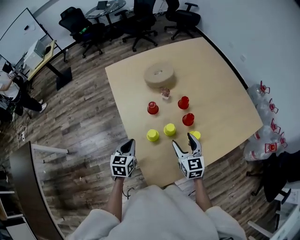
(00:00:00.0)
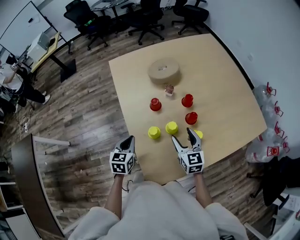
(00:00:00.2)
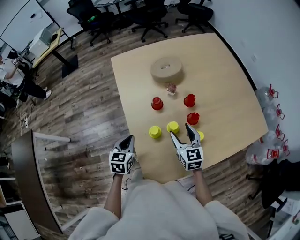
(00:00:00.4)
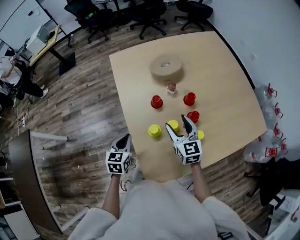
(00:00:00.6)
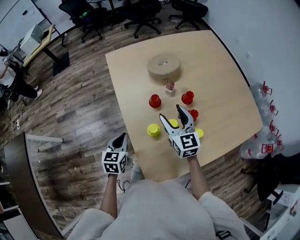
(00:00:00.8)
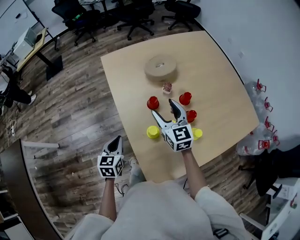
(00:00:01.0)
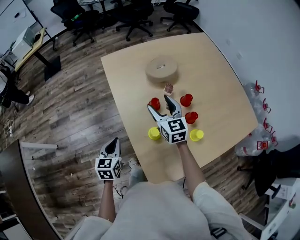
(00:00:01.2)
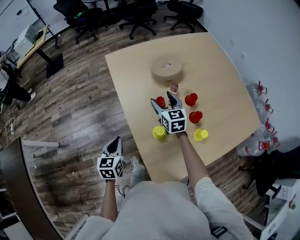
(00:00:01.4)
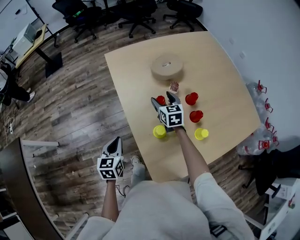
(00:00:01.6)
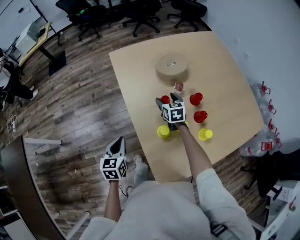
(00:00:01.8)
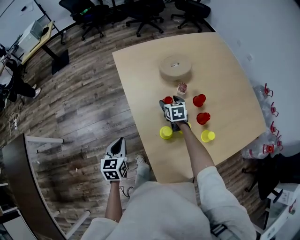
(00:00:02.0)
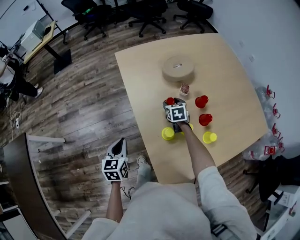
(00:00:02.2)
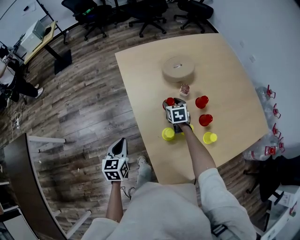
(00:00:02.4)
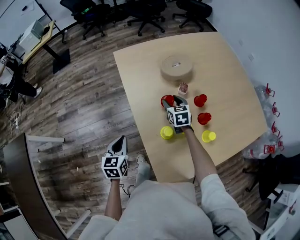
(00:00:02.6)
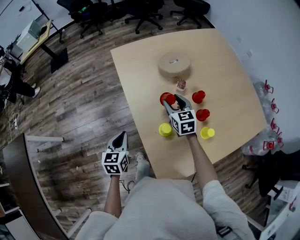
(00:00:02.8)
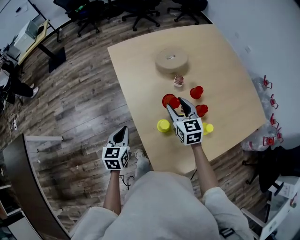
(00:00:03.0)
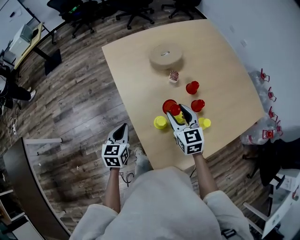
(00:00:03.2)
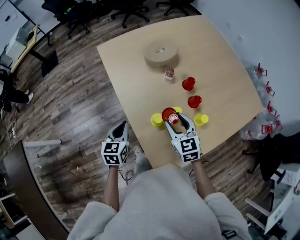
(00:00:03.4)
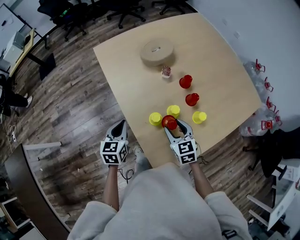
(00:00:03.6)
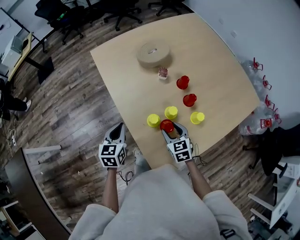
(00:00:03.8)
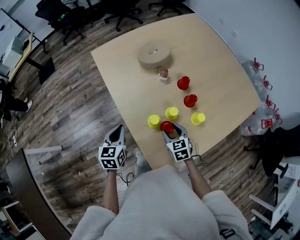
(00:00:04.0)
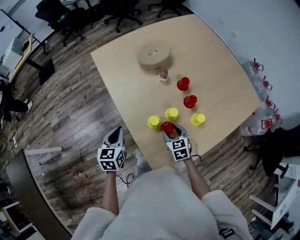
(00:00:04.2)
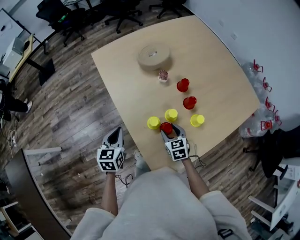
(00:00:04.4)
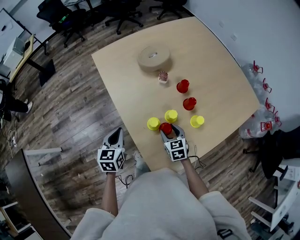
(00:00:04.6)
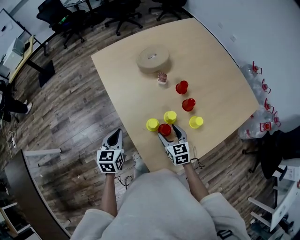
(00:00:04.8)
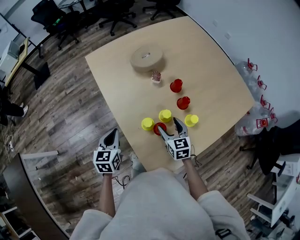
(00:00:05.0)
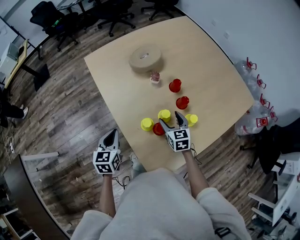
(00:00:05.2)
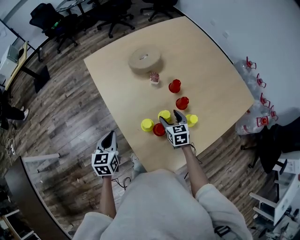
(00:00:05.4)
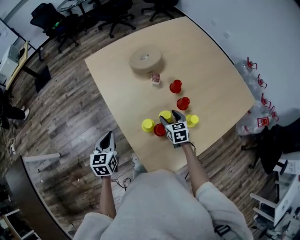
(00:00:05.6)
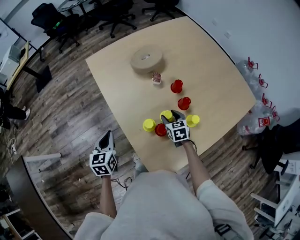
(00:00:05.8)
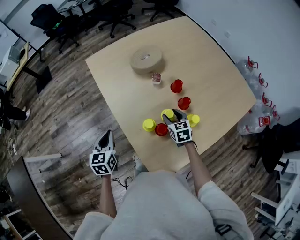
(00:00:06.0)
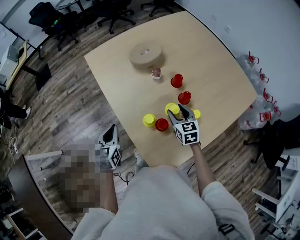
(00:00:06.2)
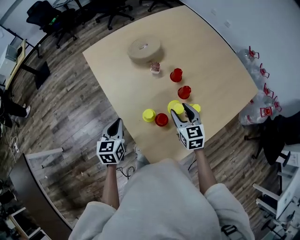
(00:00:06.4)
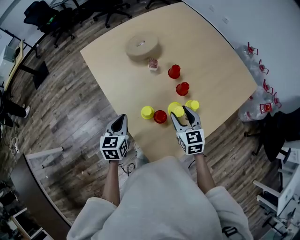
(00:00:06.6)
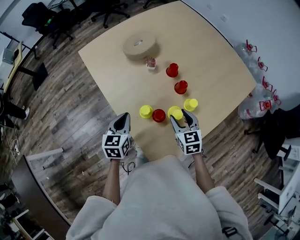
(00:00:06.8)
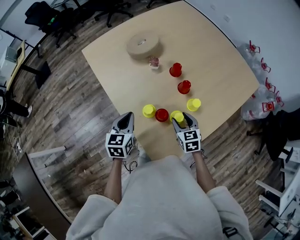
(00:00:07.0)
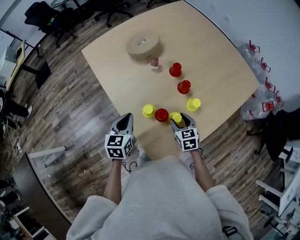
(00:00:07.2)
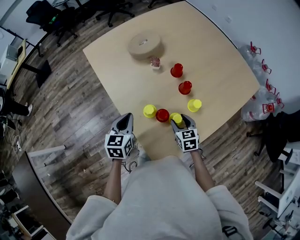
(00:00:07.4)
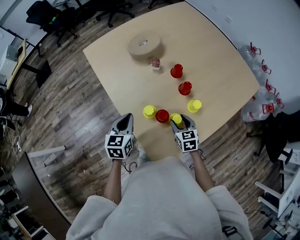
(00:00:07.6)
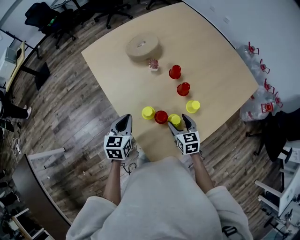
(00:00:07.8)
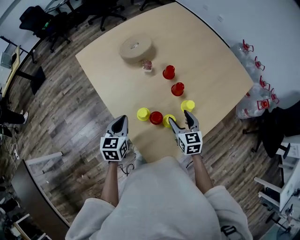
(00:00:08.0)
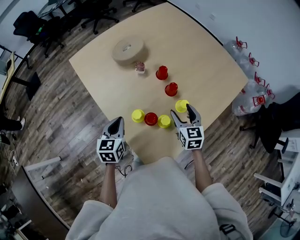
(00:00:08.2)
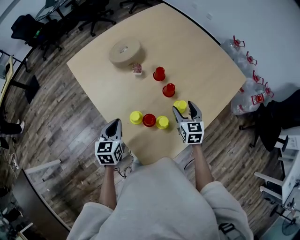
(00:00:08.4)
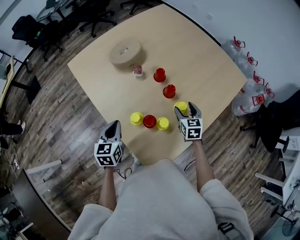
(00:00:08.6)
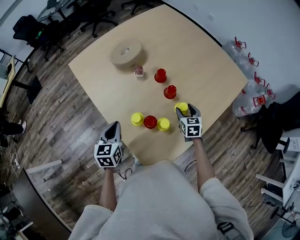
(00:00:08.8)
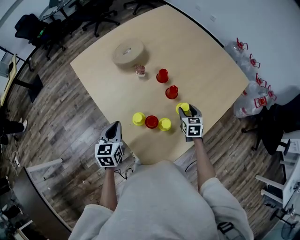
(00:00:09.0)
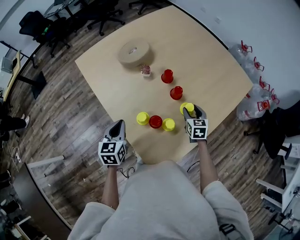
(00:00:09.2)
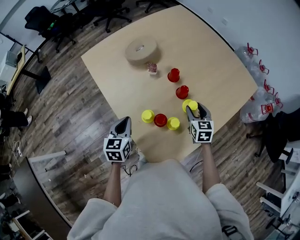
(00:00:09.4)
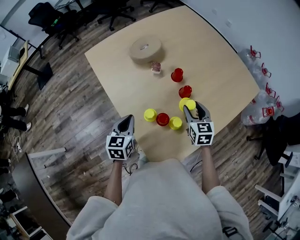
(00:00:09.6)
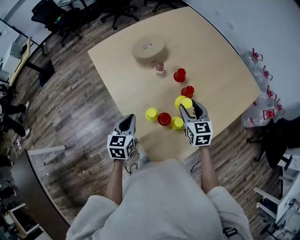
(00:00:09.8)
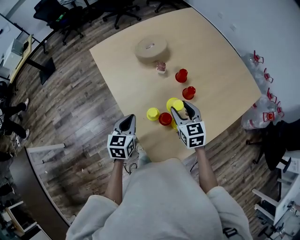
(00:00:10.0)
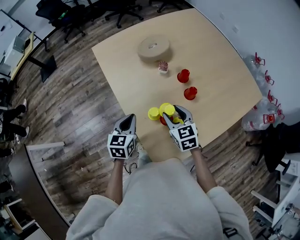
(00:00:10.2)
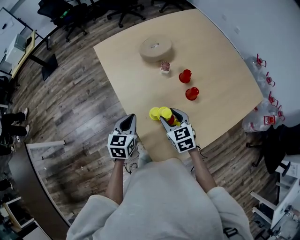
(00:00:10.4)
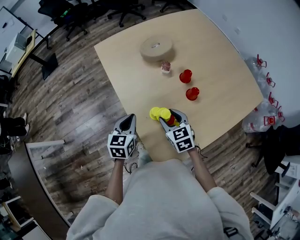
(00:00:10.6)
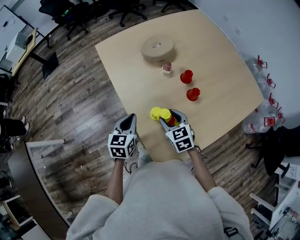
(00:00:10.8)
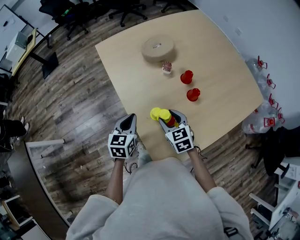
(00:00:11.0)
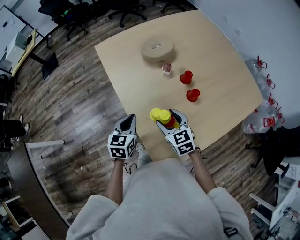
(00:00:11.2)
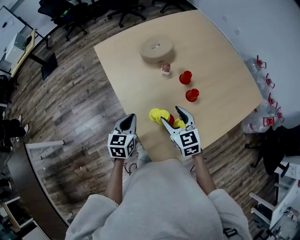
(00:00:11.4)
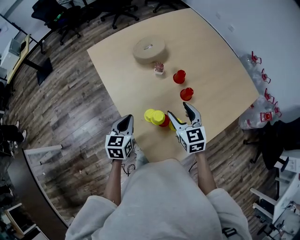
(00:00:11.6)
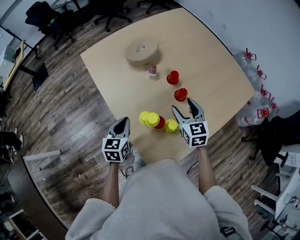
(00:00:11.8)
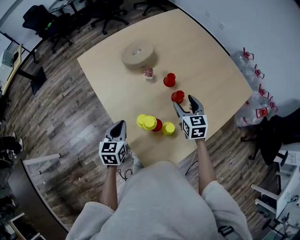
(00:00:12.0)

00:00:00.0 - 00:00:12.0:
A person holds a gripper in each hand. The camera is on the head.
00:00:00.0 - 00:00:01.6: The left gripper moves to the left, some 10 cm. The right gripper is displaced forward and to the left by some 25 cm.
00:00:01.6 - 00:00:03.0: The right gripper shifts some 10 cm backward and upward.
00:00:03.0 - 00:00:04.4: The right gripper goes some 20 cm downward and backward.
00:00:04.4 - 00:00:06.0: The right gripper travels forward by some 10 cm.
00:00:06.0 - 00:00:07.6: The right gripper heads backward, covering roughly 10 cm, and goes upward and returns, about 10 cm each way. Meanwhile the left gripper is displaced to the right by some 10 cm.
00:00:07.6 - 00:00:09.0: The right gripper is displaced to the right and forward by approximately 15 cm.
00:00:09.0 - 00:00:10.4: The right gripper goes roughly 25 cm to the left and upward, and changes its angle by about 30 degrees.
00:00:10.4 - 00:00:12.0: The right gripper is displaced to the right and forward by approximately 15 cm, and changes its angle by approximately 20 degrees.

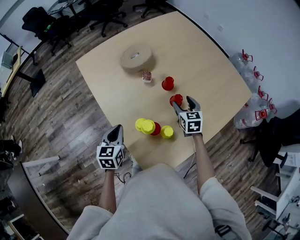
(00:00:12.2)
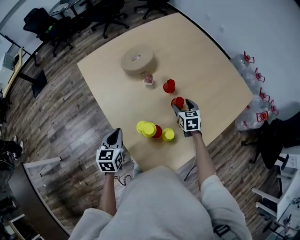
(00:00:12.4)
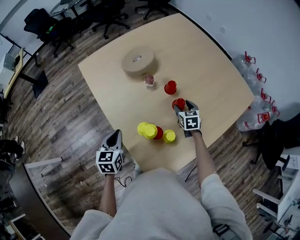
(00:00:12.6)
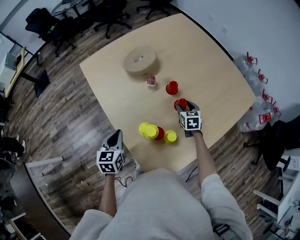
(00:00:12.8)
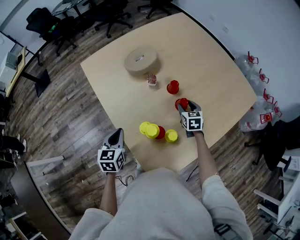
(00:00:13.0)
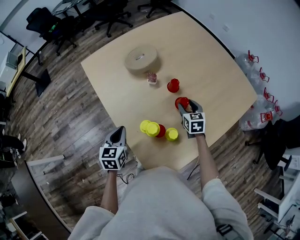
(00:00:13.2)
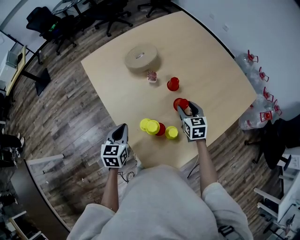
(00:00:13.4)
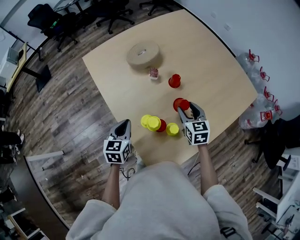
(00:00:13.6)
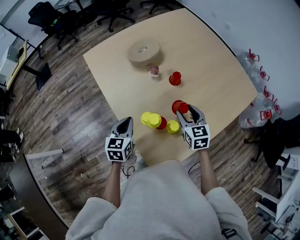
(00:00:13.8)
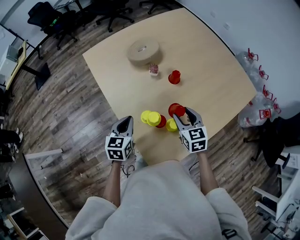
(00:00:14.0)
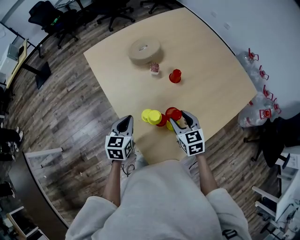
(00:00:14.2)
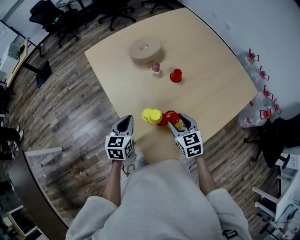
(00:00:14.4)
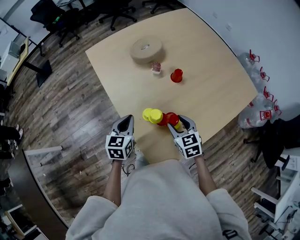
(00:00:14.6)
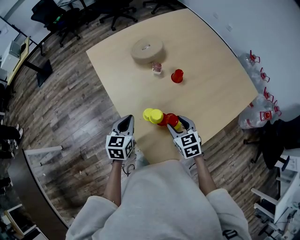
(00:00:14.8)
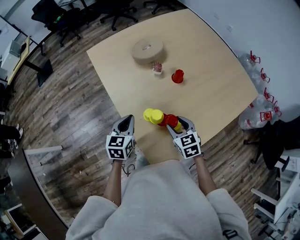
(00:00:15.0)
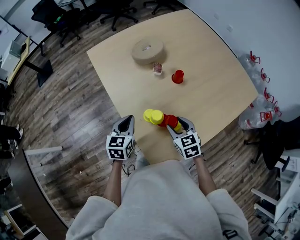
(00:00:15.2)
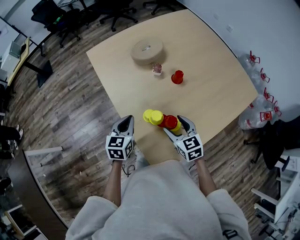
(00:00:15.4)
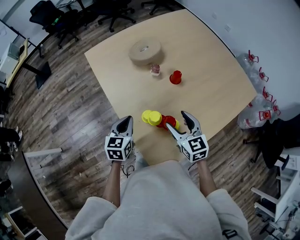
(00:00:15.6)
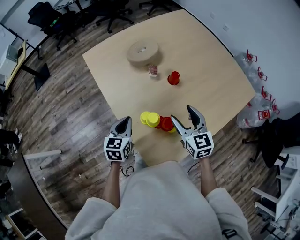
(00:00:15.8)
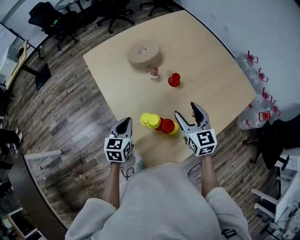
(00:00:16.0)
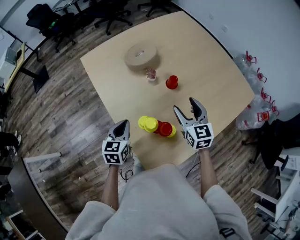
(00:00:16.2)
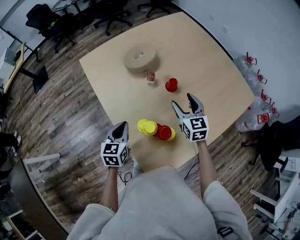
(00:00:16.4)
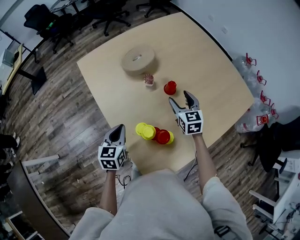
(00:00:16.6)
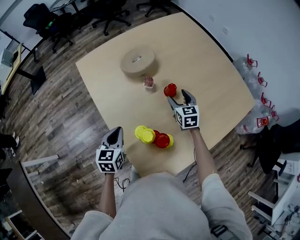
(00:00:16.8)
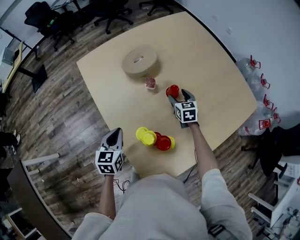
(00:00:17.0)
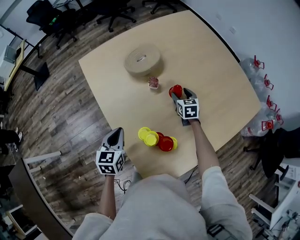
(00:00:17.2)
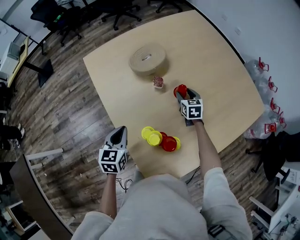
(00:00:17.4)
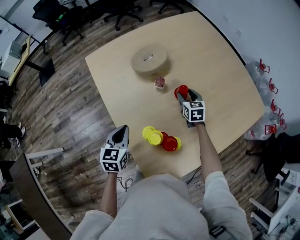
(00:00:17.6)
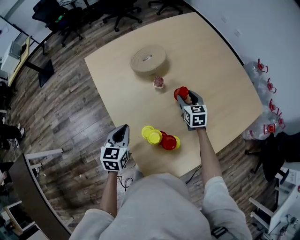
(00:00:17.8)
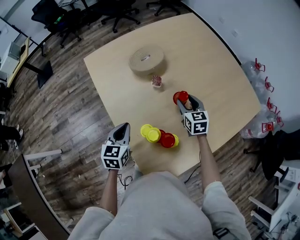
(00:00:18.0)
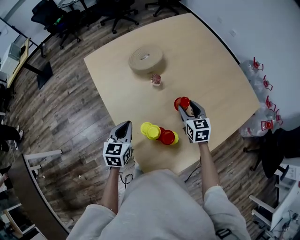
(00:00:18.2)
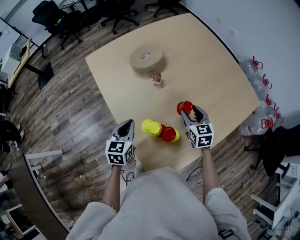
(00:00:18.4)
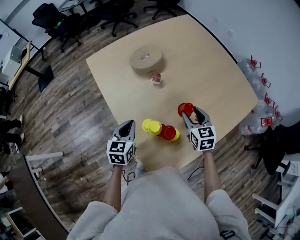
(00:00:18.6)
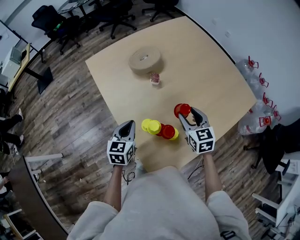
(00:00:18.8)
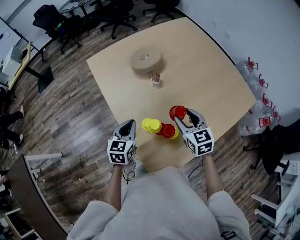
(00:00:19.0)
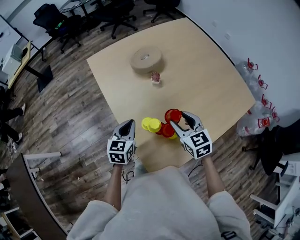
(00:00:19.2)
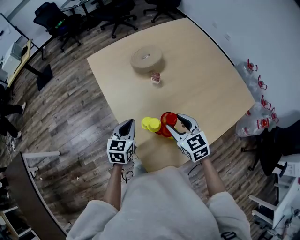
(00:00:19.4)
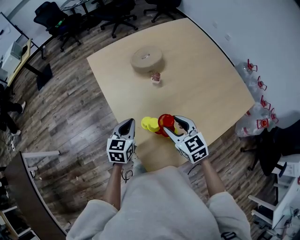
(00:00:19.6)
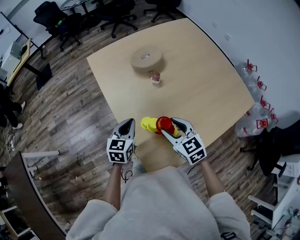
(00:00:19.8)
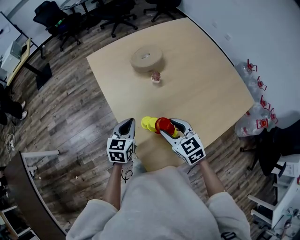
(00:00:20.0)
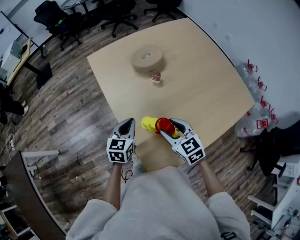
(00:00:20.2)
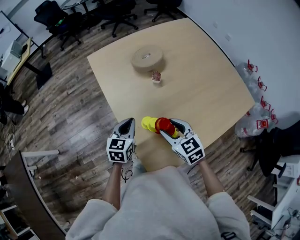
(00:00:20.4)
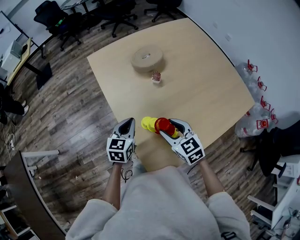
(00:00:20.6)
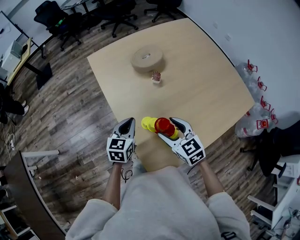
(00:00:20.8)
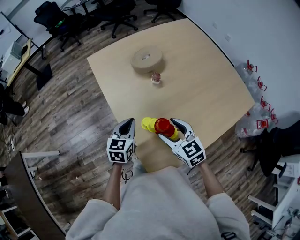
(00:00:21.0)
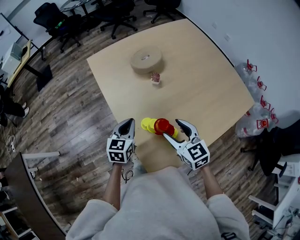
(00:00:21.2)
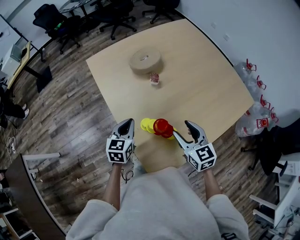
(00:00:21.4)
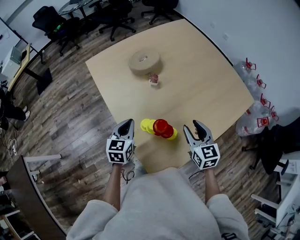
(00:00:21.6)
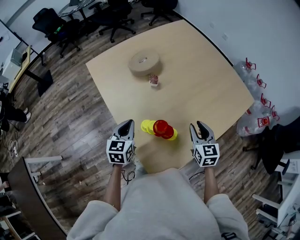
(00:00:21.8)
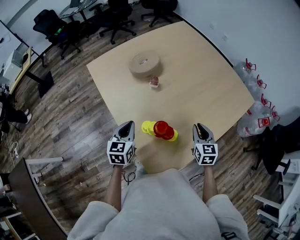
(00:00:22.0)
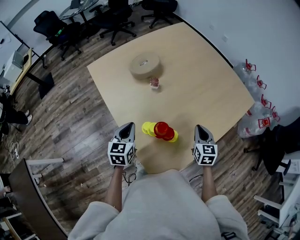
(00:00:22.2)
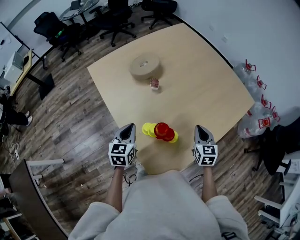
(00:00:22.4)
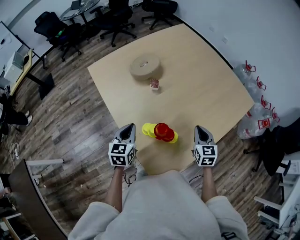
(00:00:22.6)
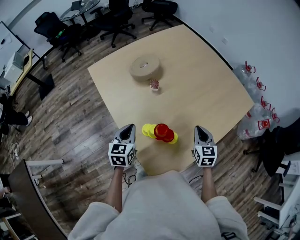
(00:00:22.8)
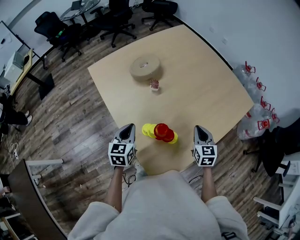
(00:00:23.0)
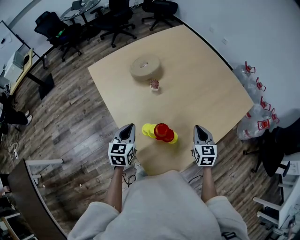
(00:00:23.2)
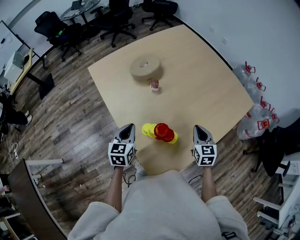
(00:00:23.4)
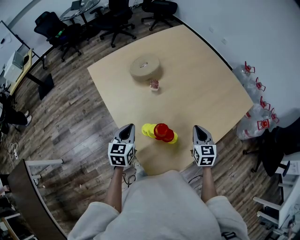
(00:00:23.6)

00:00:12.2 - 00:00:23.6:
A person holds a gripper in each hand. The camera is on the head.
00:00:12.2 - 00:00:13.6: The right gripper goes downward and returns, some 5 cm each way.
00:00:13.6 - 00:00:15.0: The right gripper shifts some 15 cm backward and to the left.
00:00:15.0 - 00:00:16.4: The right gripper heads forward, to the right and upward, covering some 20 cm, and turns by roughly 20 degrees.
00:00:16.4 - 00:00:17.8: The right gripper heads downward and forward, covering approximately 15 cm.
00:00:17.8 - 00:00:19.4: The right gripper shifts roughly 25 cm backward and upward, and swivels some 20 degrees.
00:00:19.4 - 00:00:20.8: The grippers make only small movements.
00:00:20.8 - 00:00:22.2: The right gripper goes approximately 20 cm to the right, changes its angle by some 40 degrees, and closes up.
00:00:22.2 - 00:00:23.6: The grippers move only a little.
